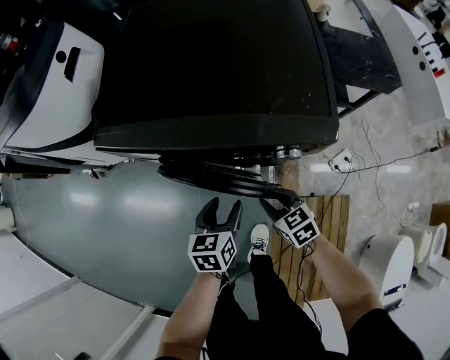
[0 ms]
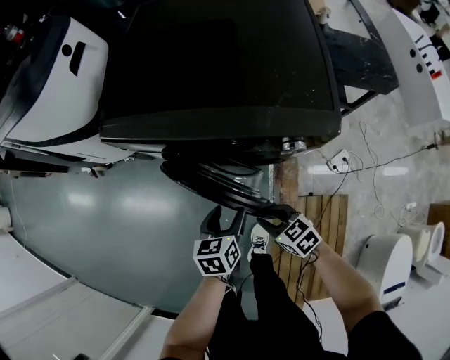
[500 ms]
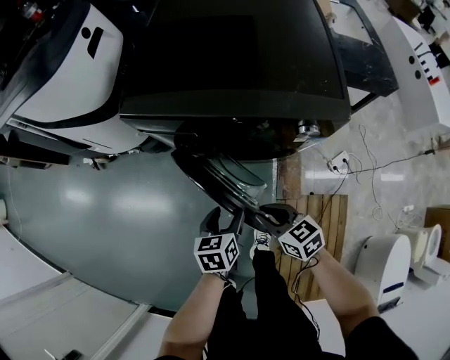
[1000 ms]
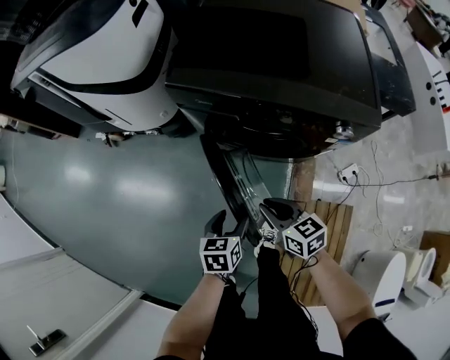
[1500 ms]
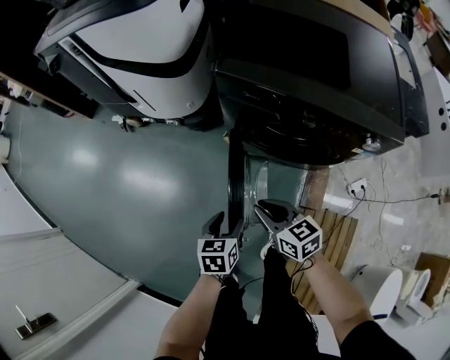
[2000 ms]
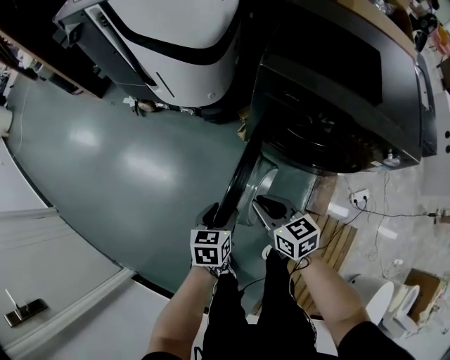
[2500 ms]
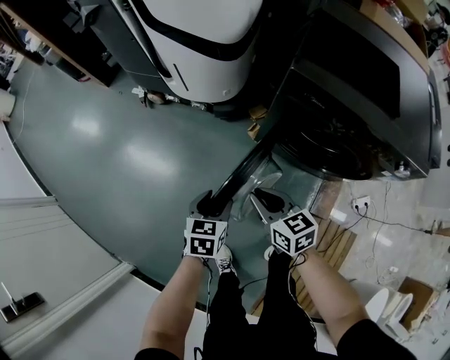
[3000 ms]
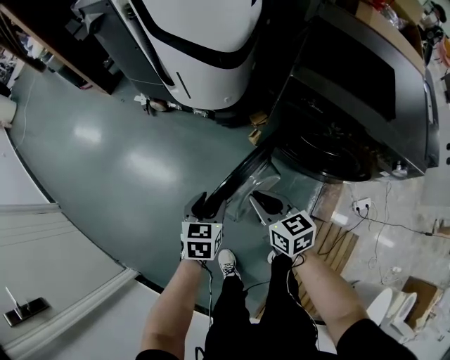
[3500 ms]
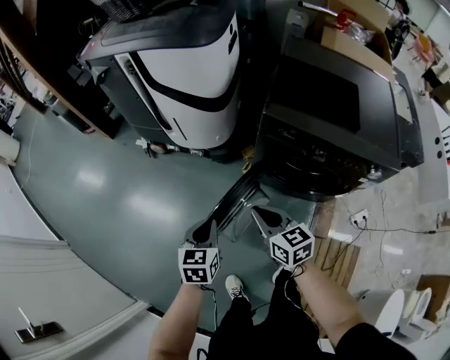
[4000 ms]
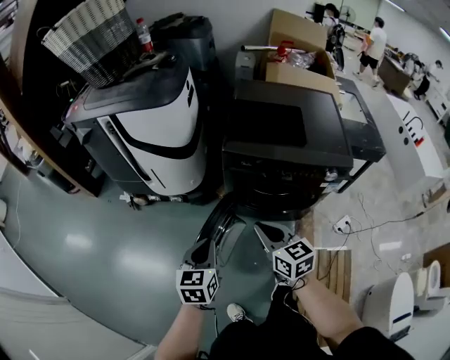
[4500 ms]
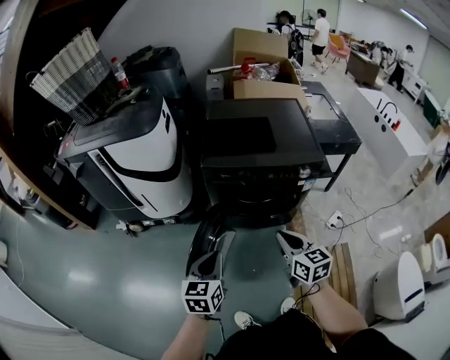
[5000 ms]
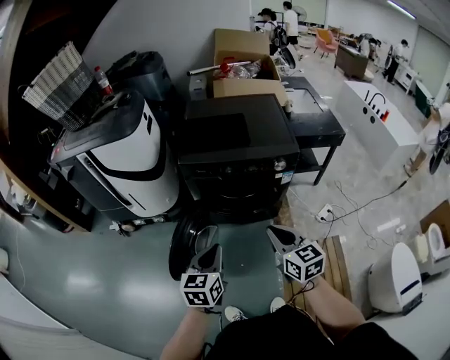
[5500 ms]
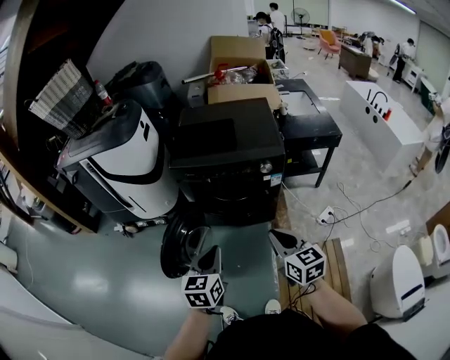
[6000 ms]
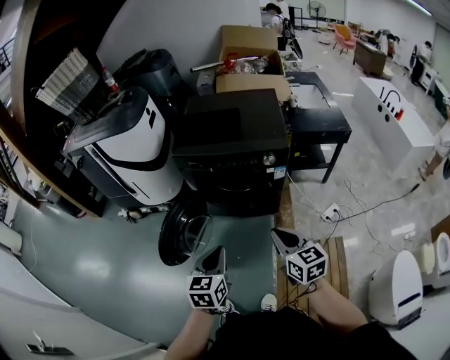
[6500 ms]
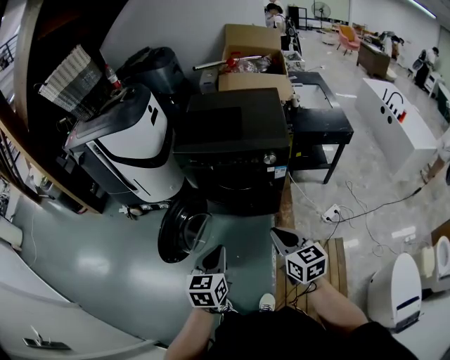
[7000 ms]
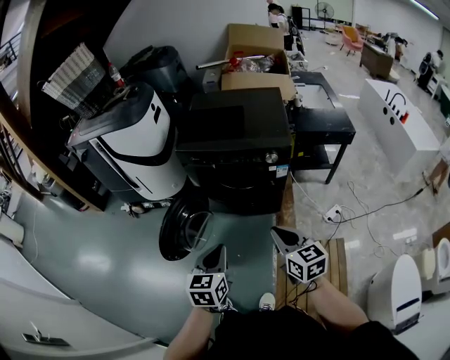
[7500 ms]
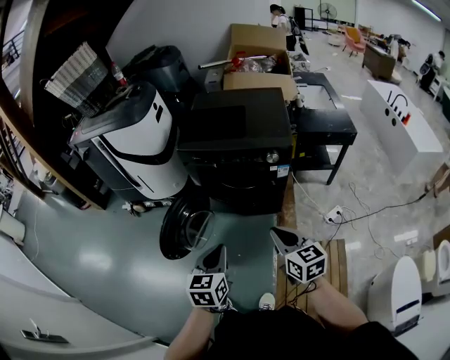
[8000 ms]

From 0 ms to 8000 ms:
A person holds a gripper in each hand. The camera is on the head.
From 0 ms to 2000 ms: Both grippers travel together to the left, approximately 30 cm.
From 2000 ms to 4000 ms: Both grippers move to the left, upward and forward, about 20 cm. The left gripper closes up.
From 4000 ms to 6000 ms: The right gripper moves approximately 50 cm, and changes its angle by approximately 30 degrees, while the left gripper moves roughly 40 cm, and swivels some 20 degrees.
From 6000 ms to 8000 ms: The left gripper changes place by approximately 5 cm.

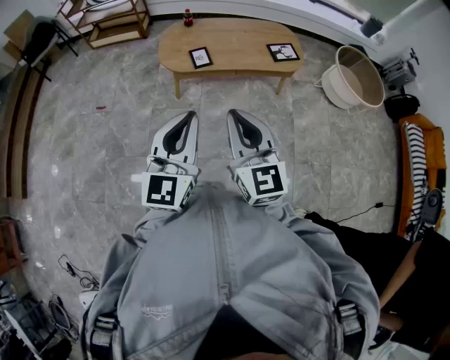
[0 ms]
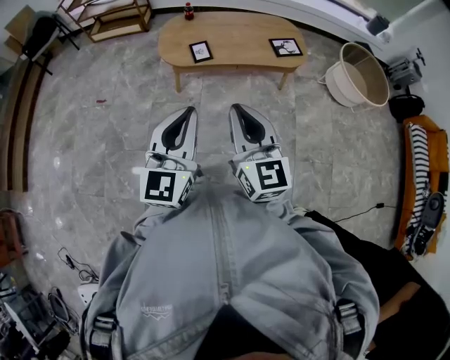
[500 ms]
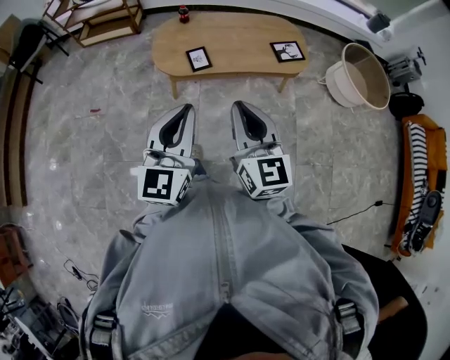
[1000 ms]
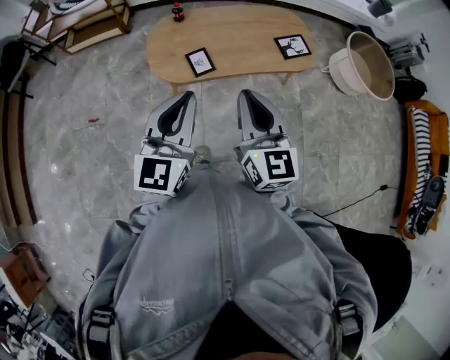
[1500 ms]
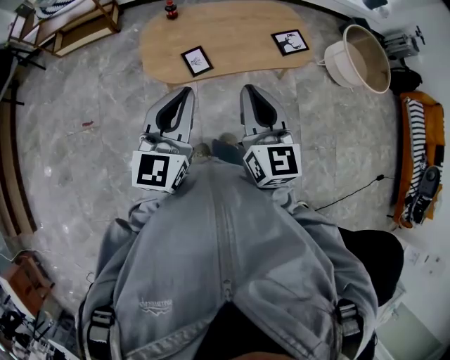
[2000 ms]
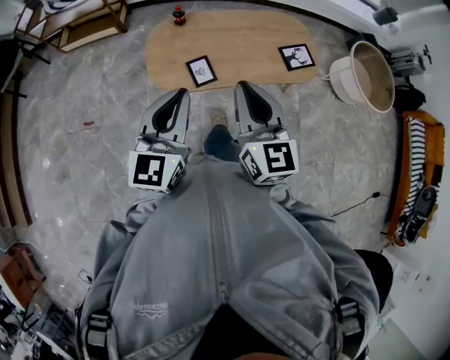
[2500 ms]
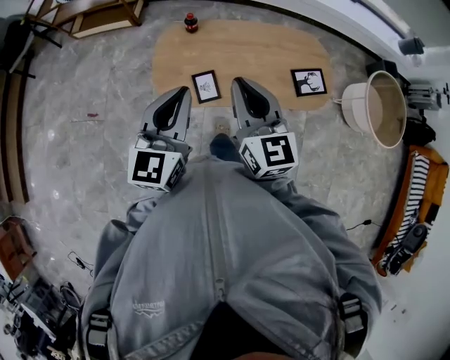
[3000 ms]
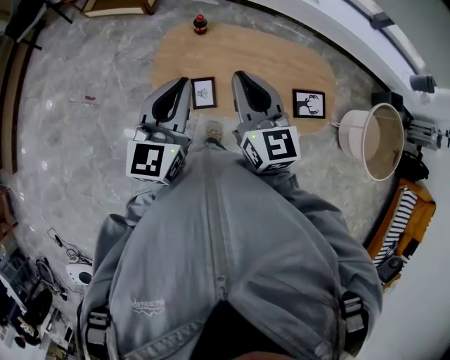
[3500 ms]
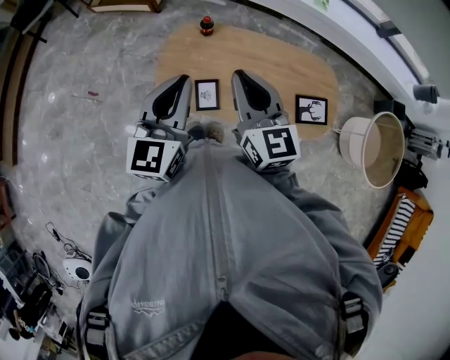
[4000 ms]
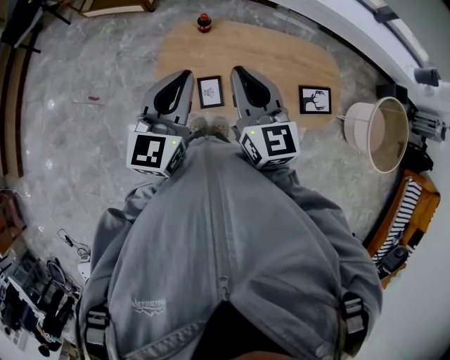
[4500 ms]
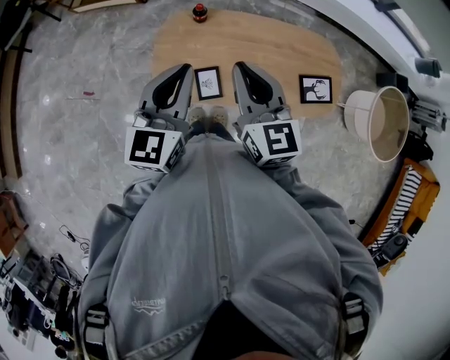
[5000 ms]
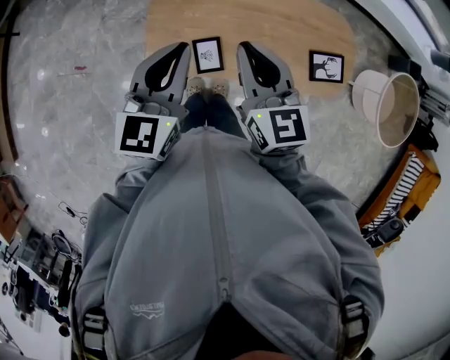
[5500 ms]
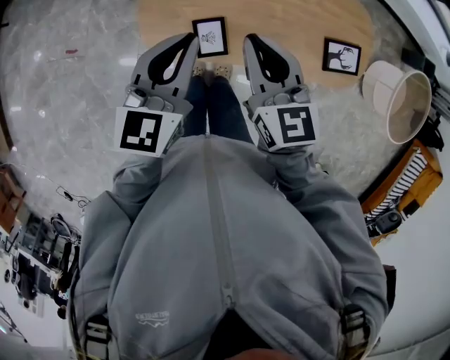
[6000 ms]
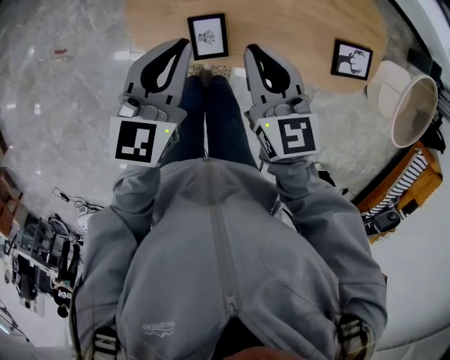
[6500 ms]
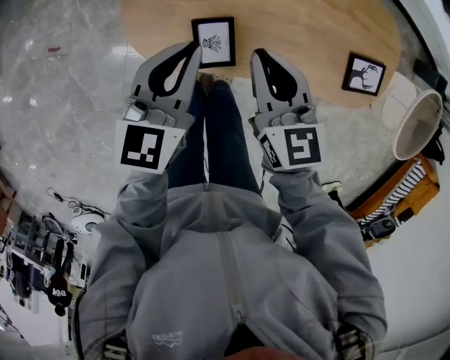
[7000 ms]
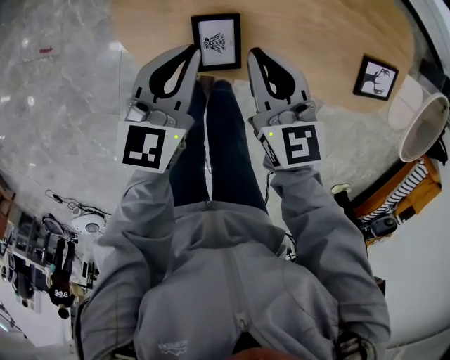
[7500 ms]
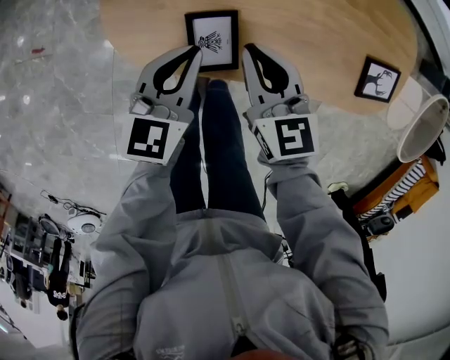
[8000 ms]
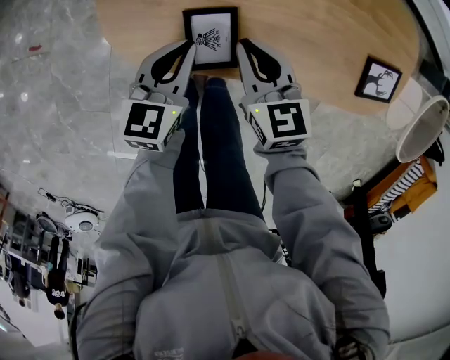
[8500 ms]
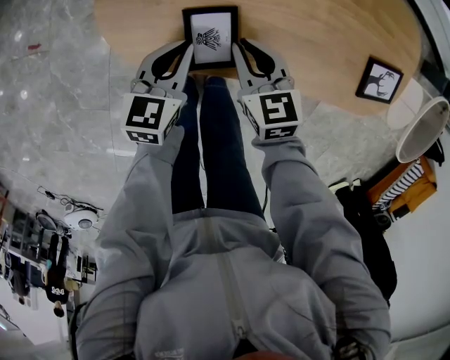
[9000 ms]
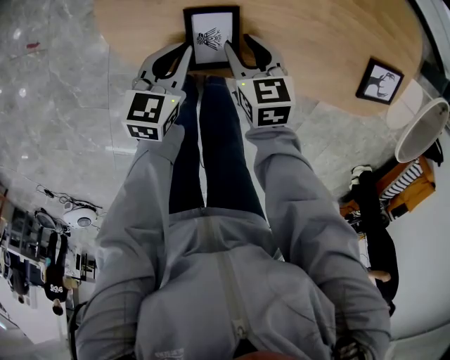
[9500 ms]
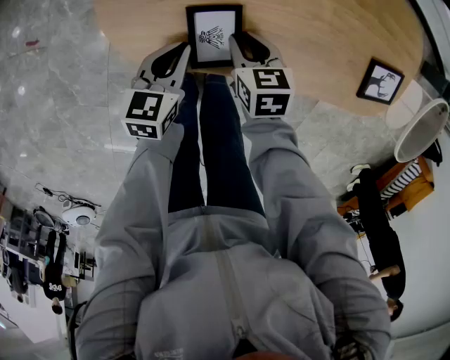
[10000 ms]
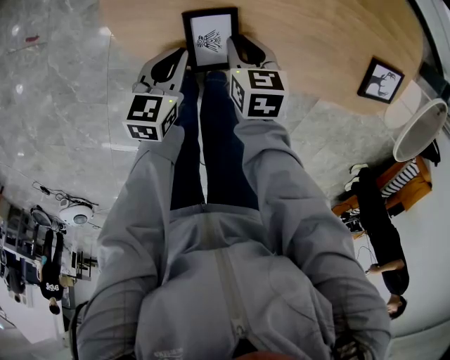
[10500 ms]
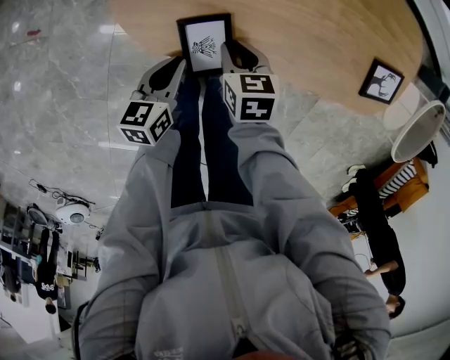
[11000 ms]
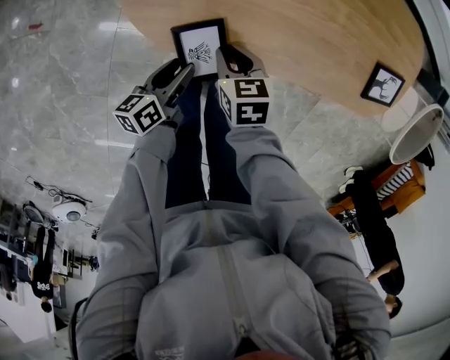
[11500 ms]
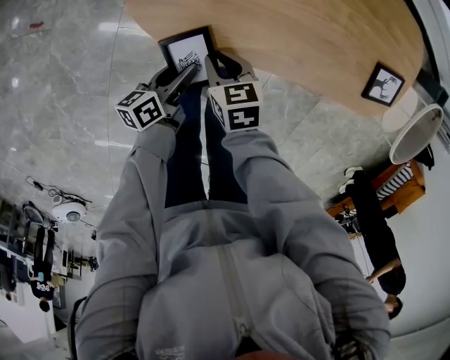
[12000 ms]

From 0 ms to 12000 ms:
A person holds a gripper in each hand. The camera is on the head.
From 0 ms to 2000 ms: Both grippers move forward, some 40 cm.
From 2000 ms to 4000 ms: The left gripper shifts by roughly 30 cm, and swivels some 20 degrees. Meanwhile the right gripper changes place by about 35 cm, and turns by approximately 30 degrees.
From 4000 ms to 6000 ms: The right gripper goes roughly 20 cm downward. Meanwhile the left gripper shifts some 20 cm downward and forward.
From 6000 ms to 8000 ms: Both grippers travel together downward, approximately 35 cm.
From 8000 ms to 10000 ms: Both grippers move downward, about 15 cm. The right gripper swivels some 20 degrees.
From 10000 ms to 12000 ms: The right gripper travels to the left and backward by roughly 15 cm, while the left gripper shifts some 10 cm backward and to the left, twists some 40 degrees counterclockwise, seen from behind, and opens.

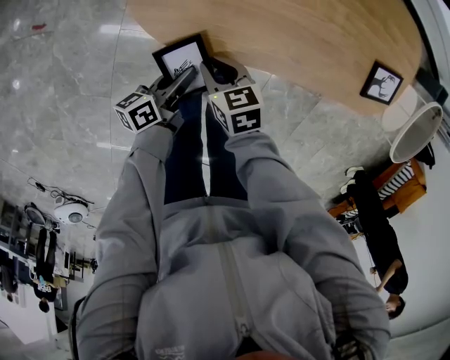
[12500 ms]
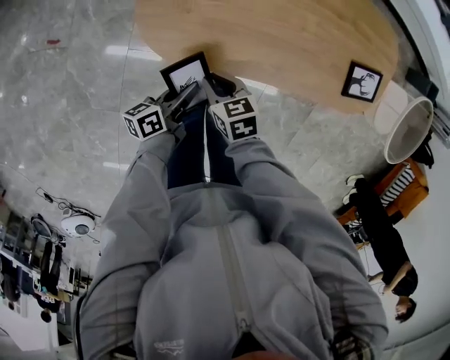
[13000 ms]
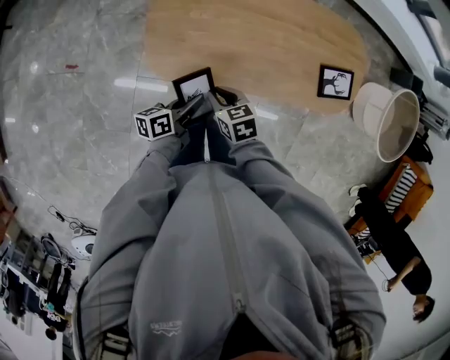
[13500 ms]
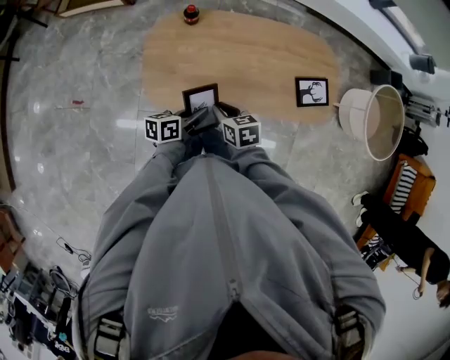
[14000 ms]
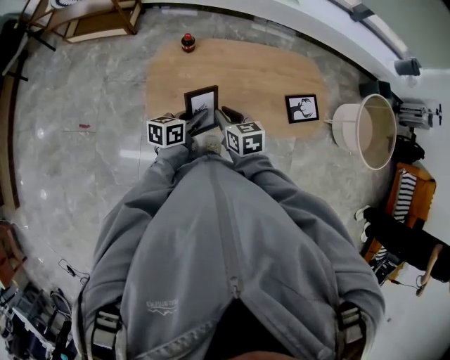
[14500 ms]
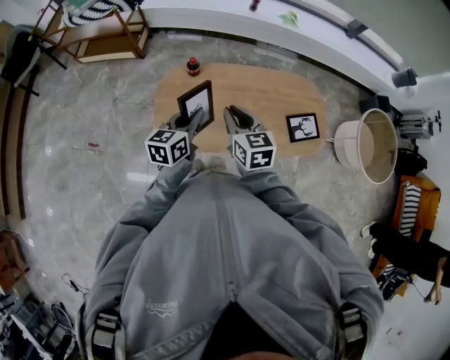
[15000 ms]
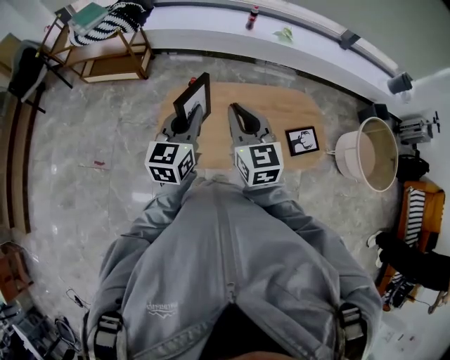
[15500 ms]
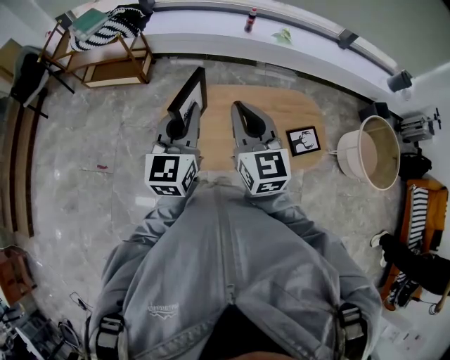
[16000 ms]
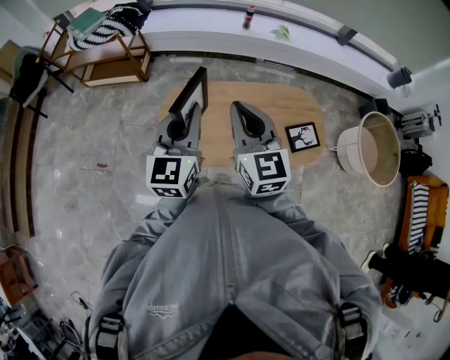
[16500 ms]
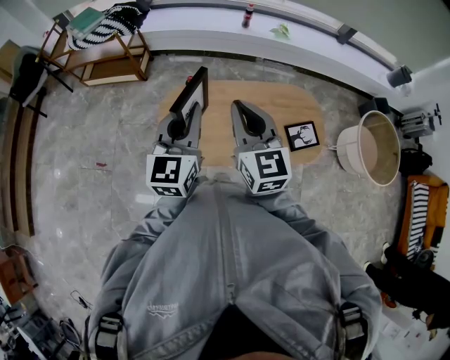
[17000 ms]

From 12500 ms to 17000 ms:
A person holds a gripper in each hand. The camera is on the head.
From 12500 ms to 14500 ms: The grippers both shift upward by roughly 40 cm. The left gripper swivels roughly 30 degrees. The right gripper turns by roughly 20 degrees.
From 14500 ms to 17000 ms: The grippers both shift upward by roughly 30 cm. The left gripper changes its angle by approximately 60 degrees. The right gripper angles its fingers upward, by some 30 degrees.

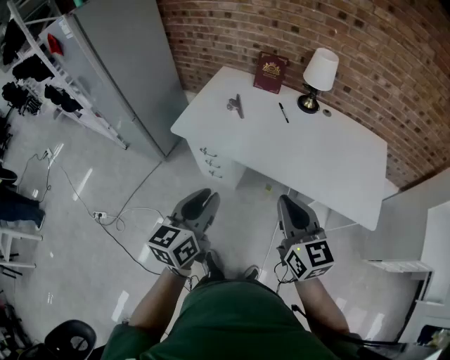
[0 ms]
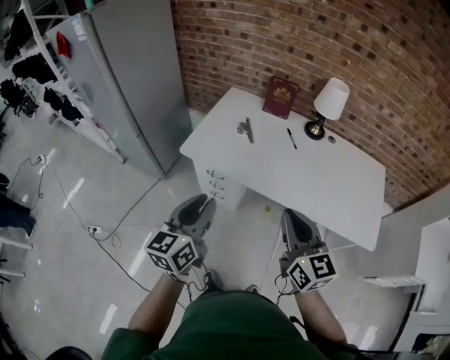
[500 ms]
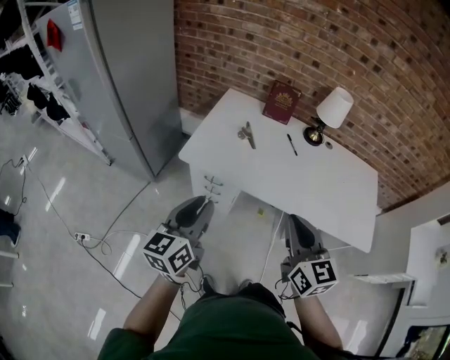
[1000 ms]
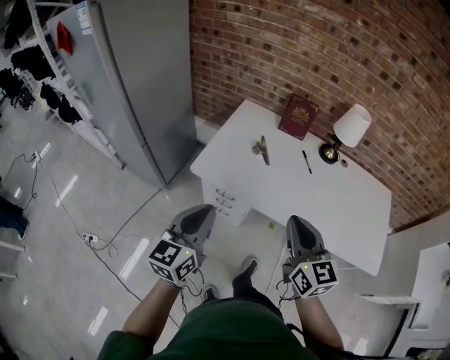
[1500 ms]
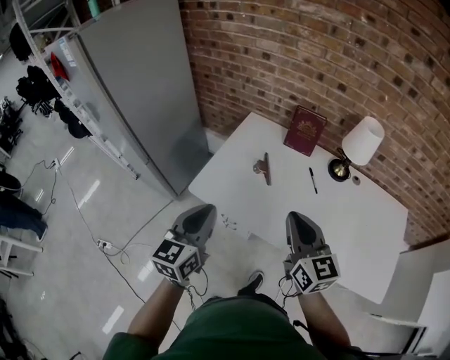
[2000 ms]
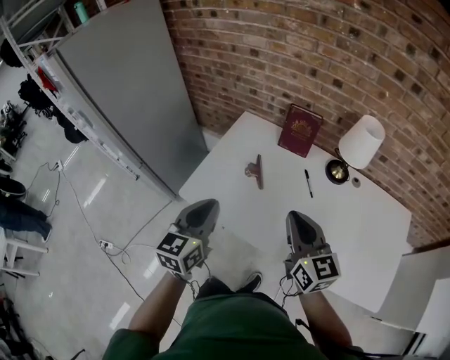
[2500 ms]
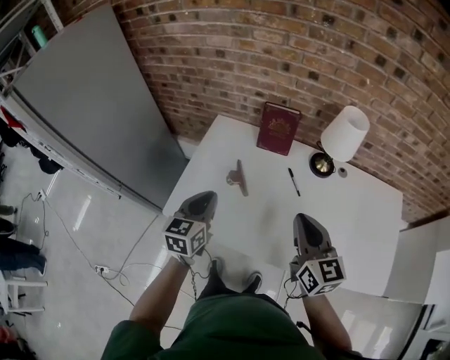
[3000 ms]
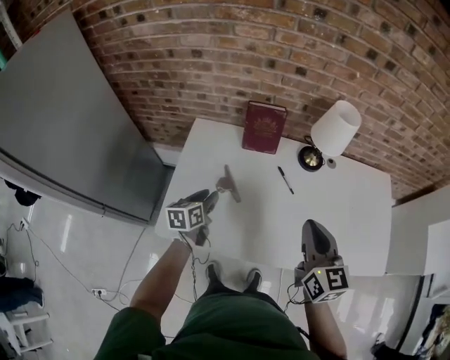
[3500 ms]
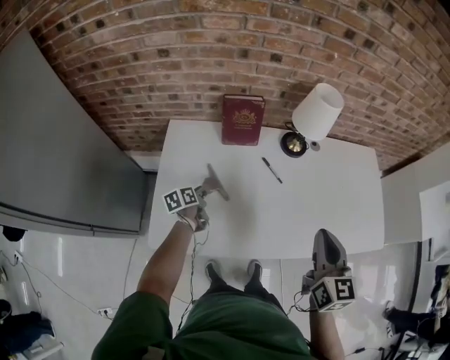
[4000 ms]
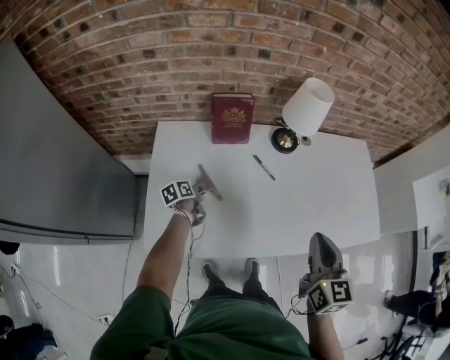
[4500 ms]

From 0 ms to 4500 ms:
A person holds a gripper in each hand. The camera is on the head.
From 0 ms to 2000 ms: The left gripper goes some 25 cm forward and to the left; the right gripper is displaced forward by approximately 25 cm.
From 2000 ms to 4500 ms: The left gripper moves downward, some 35 cm, and tilts its fingers roughly 30 degrees downward; the right gripper moves roughly 15 cm, and changes its angle by about 50 degrees.
